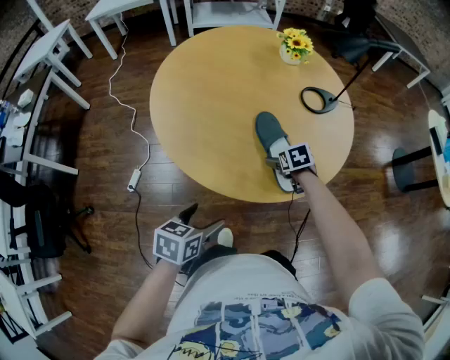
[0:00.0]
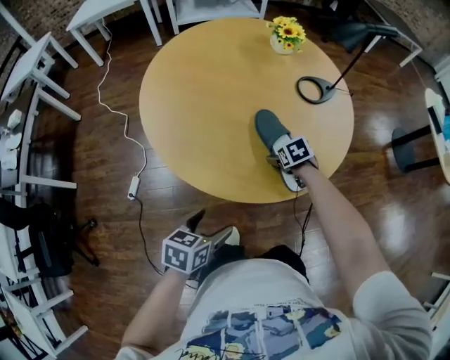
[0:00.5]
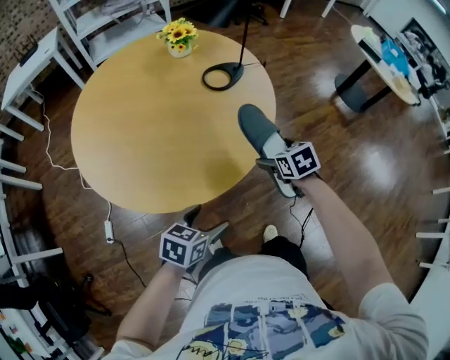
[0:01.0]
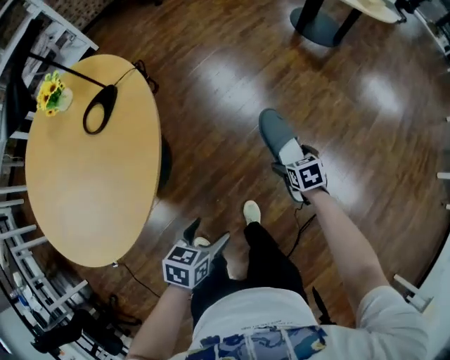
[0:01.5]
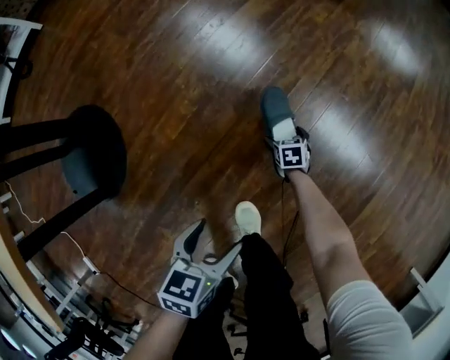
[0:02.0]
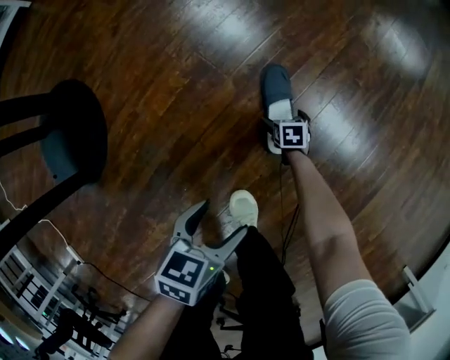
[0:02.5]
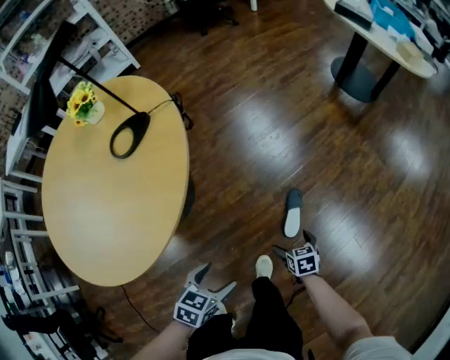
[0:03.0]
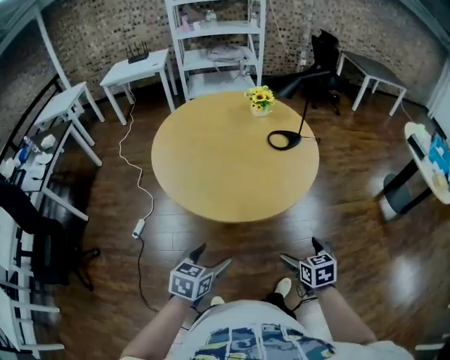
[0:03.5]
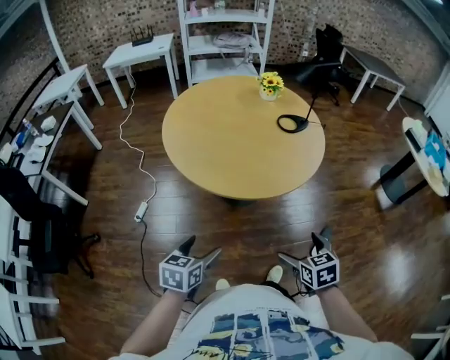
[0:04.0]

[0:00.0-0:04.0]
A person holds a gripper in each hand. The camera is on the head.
0:00.0 to 0:02.0: Both grippers are carried some 80 cm. The left gripper changes its angle by roughly 50 degrees, while the right gripper twists some 50 degrees clockwise, seen from behind.
0:02.0 to 0:04.0: Both grippers are carried some 80 cm. The right gripper shifts some 90 cm upward, and twists approximately 40 degrees counterclockwise, seen from behind. Meanwhile the left gripper swivels some 50 degrees.

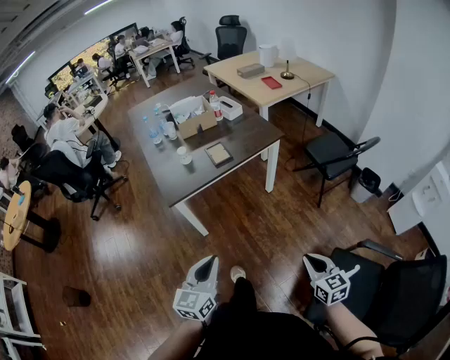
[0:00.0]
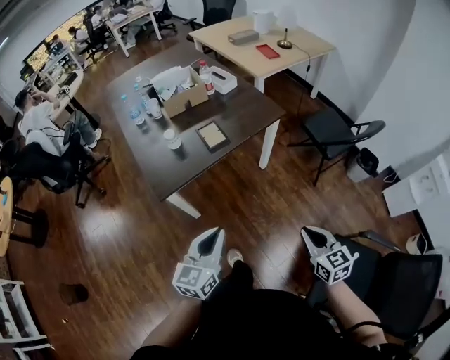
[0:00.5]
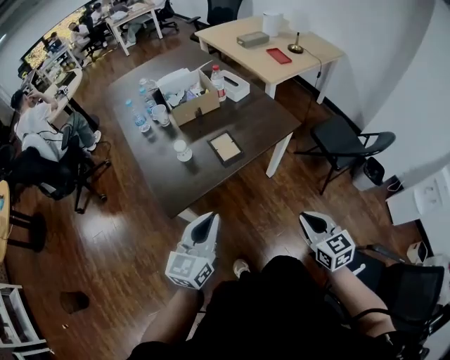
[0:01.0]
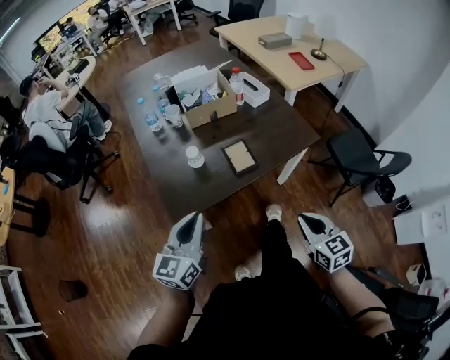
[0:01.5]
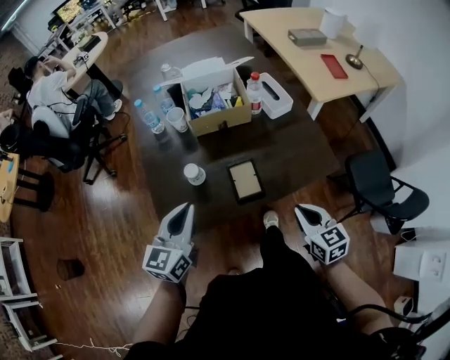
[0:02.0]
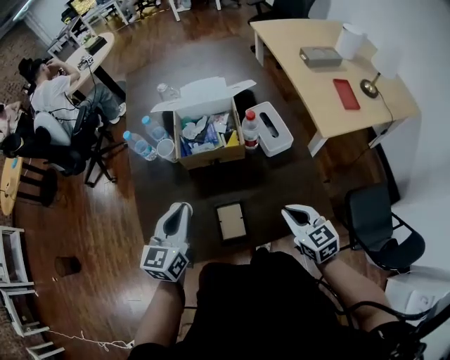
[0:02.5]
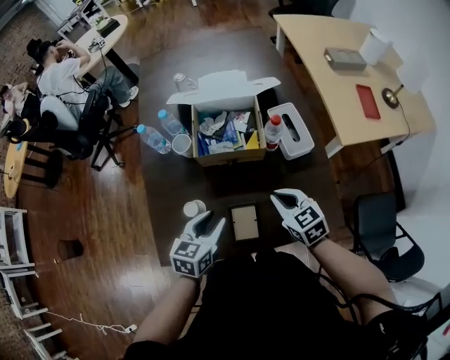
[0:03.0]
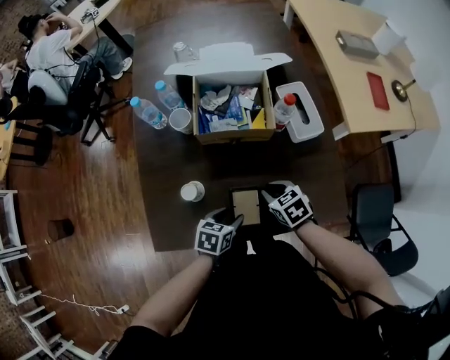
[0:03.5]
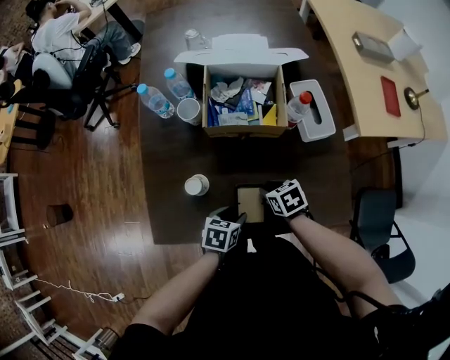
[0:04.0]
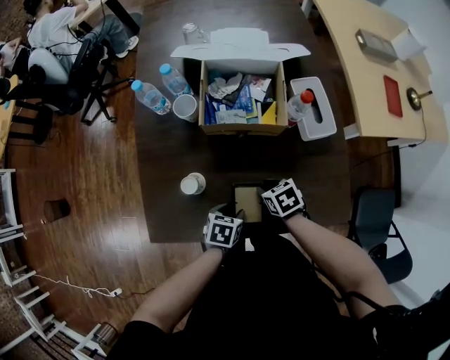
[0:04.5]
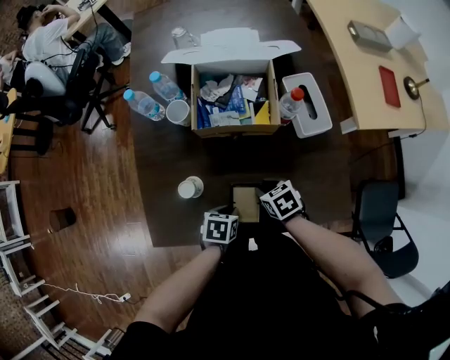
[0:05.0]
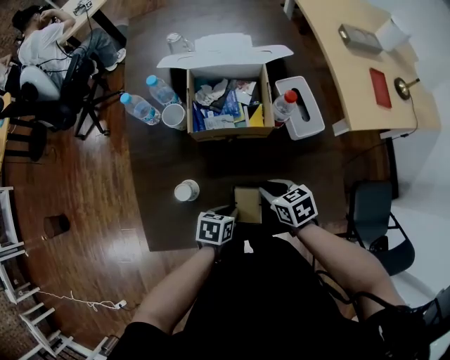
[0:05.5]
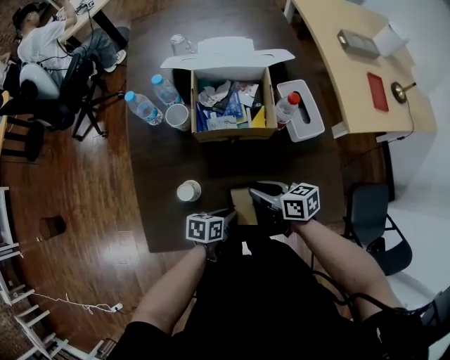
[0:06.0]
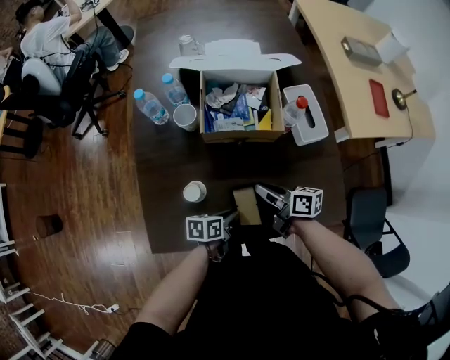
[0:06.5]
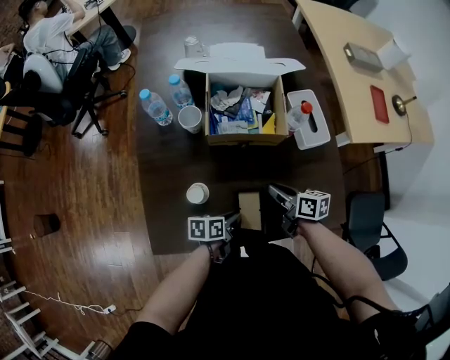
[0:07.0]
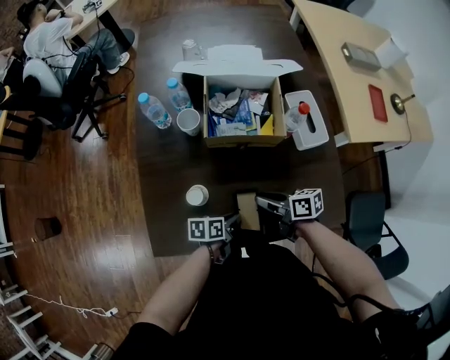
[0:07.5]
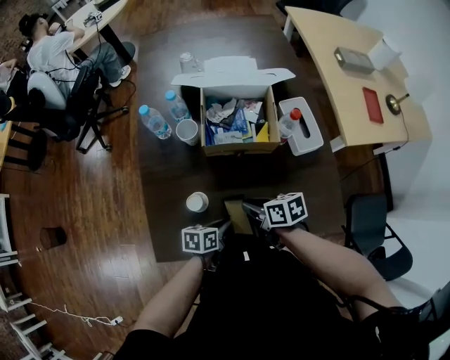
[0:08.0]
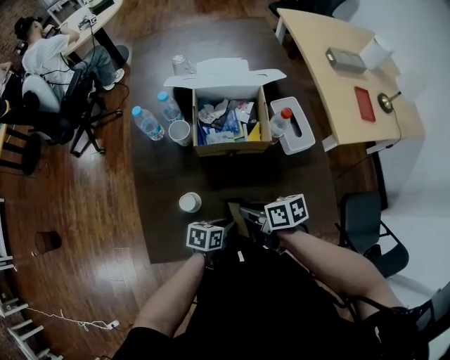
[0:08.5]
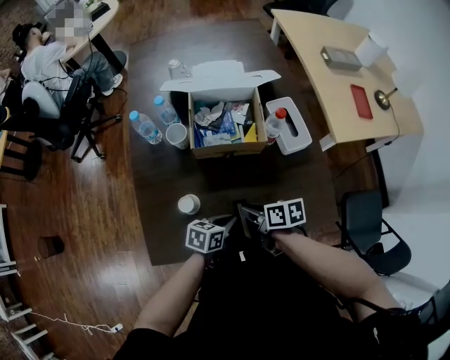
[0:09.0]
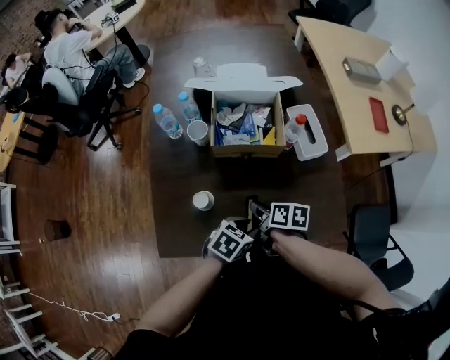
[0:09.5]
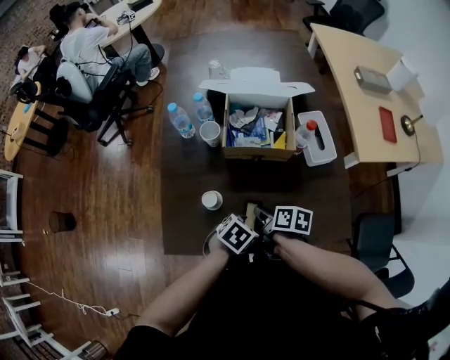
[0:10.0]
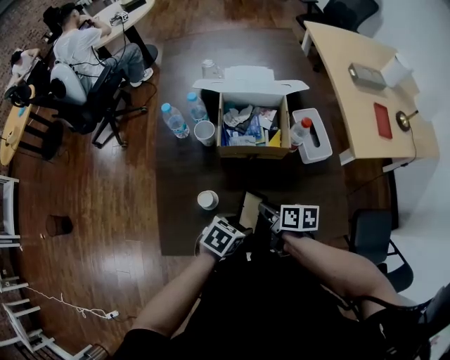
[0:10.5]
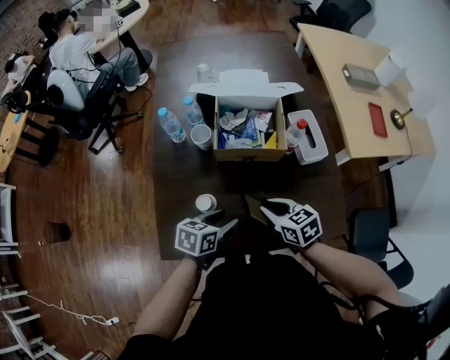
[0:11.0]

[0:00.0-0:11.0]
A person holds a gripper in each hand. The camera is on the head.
0:00.0 to 0:02.0: The two grippers travel together, forward, roughly 50 cm.
0:02.0 to 0:03.5: The left gripper travels downward and to the right by roughly 25 cm, tips its fingers downward by approximately 40 degrees, and opens its fingers; the right gripper shifts some 25 cm forward and downward, and turns by approximately 40 degrees.
0:03.5 to 0:05.5: The left gripper closes its fingers.
0:05.5 to 0:07.5: The left gripper swivels approximately 30 degrees. The right gripper turns by some 30 degrees.
0:07.5 to 0:09.0: The left gripper heads upward, covering roughly 5 cm, and changes its angle by about 30 degrees.
0:09.0 to 0:11.0: The left gripper goes roughly 5 cm upward, and opens. Meanwhile the right gripper moves about 5 cm, and changes its angle by about 40 degrees.

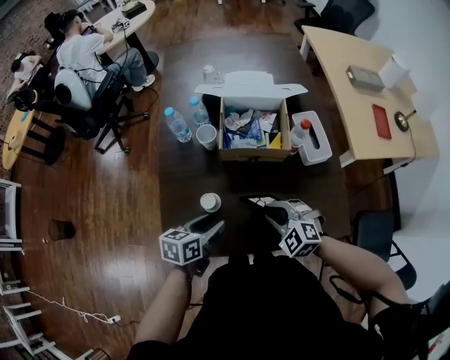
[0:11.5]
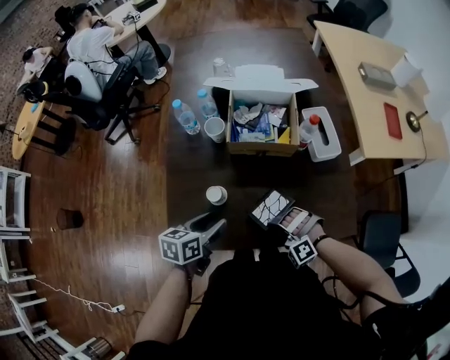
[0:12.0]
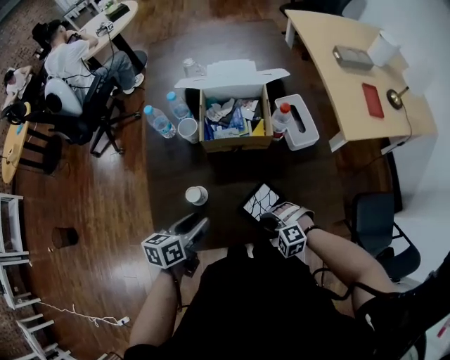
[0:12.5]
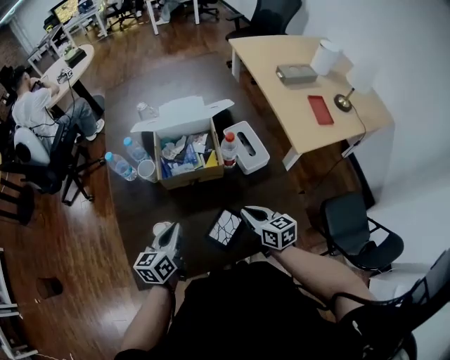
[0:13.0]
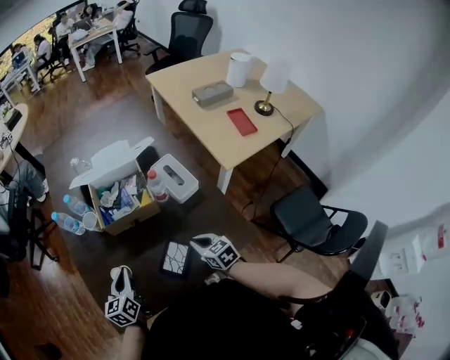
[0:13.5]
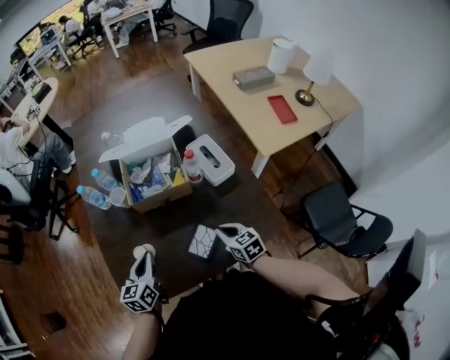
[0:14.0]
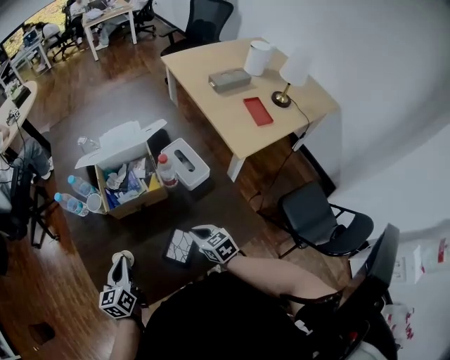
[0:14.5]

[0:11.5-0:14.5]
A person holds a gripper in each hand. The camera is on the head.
0:11.5 to 0:13.0: The right gripper shifts about 10 cm to the right, reaches roughly 15 cm downward, then returns, and twists approximately 70 degrees clockwise, seen from behind; the left gripper shifts some 5 cm forward, and closes.
0:13.0 to 0:14.5: The right gripper shifts by about 5 cm.

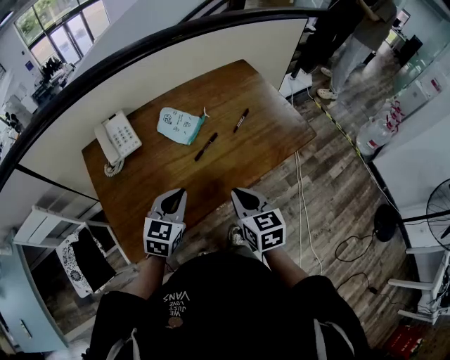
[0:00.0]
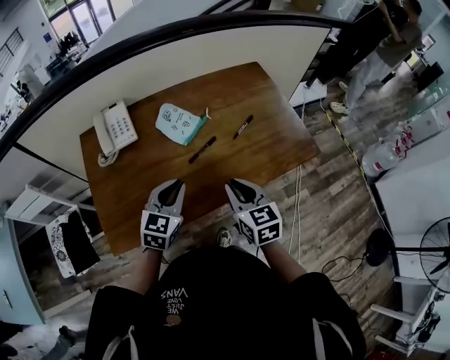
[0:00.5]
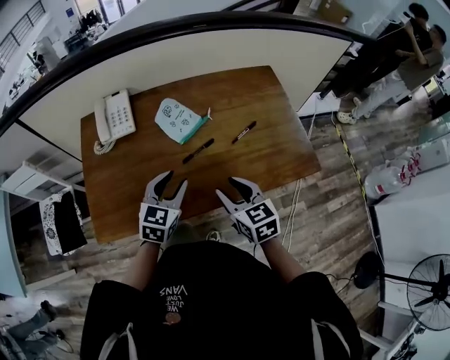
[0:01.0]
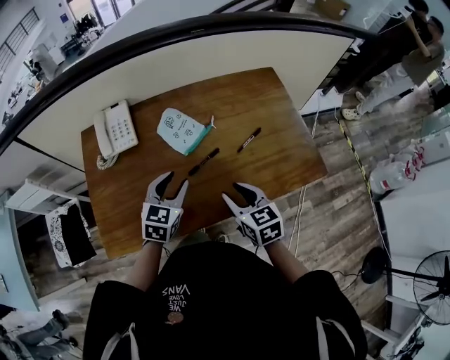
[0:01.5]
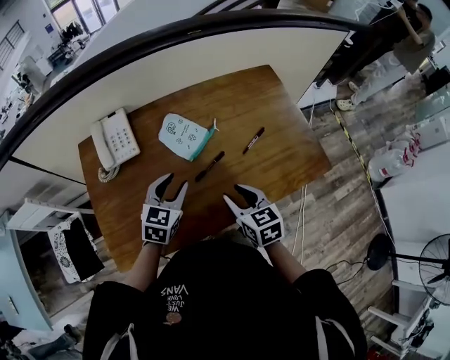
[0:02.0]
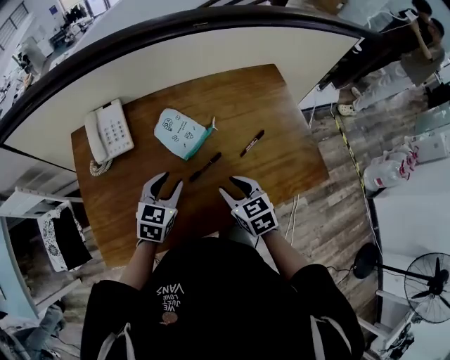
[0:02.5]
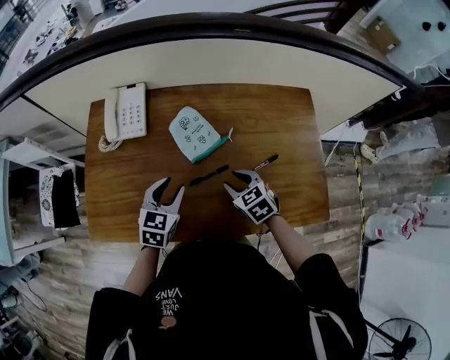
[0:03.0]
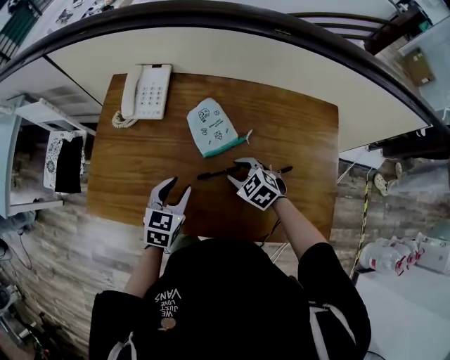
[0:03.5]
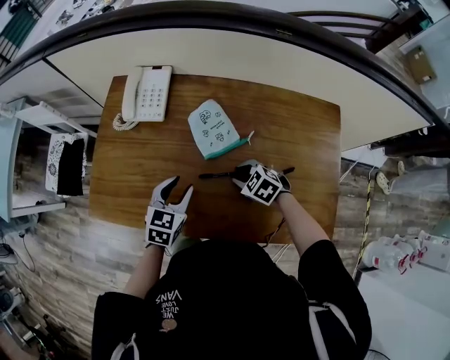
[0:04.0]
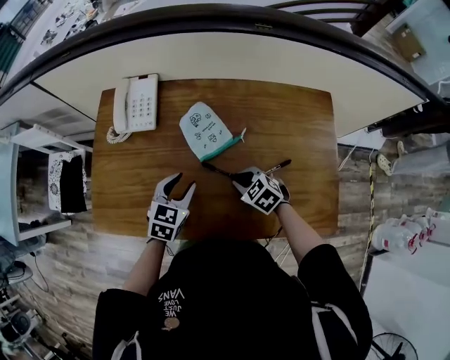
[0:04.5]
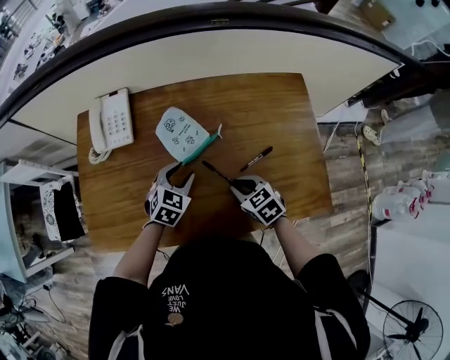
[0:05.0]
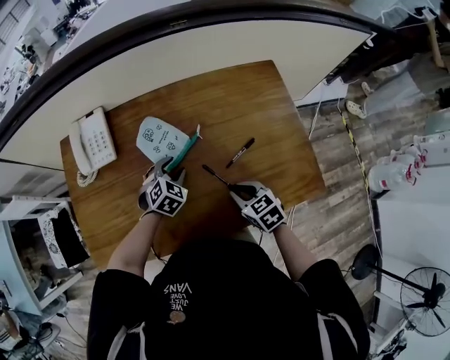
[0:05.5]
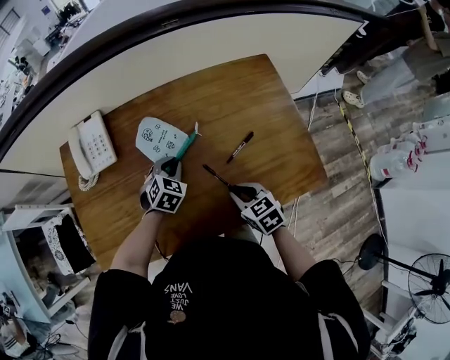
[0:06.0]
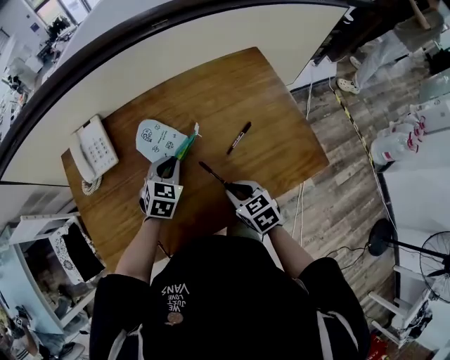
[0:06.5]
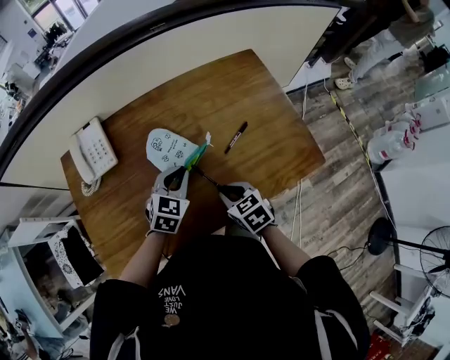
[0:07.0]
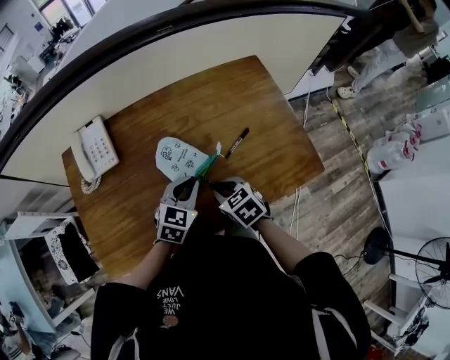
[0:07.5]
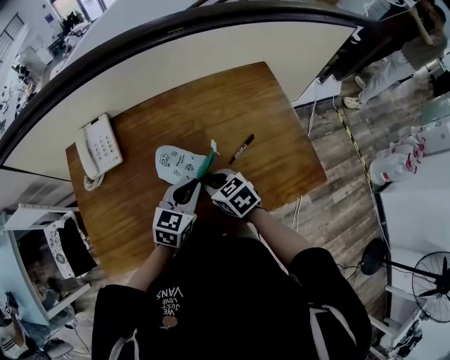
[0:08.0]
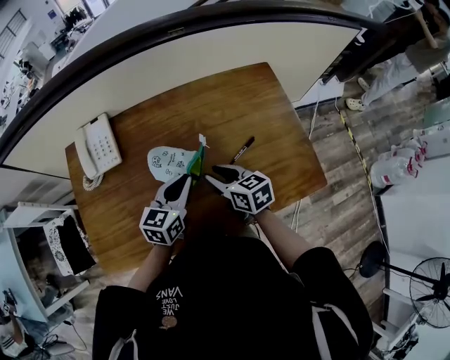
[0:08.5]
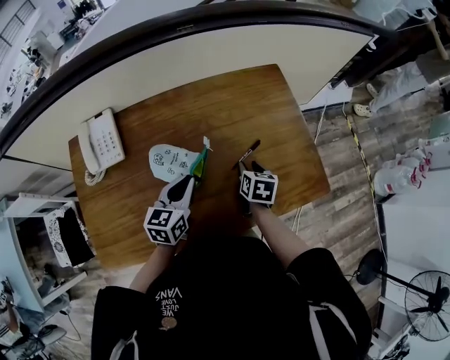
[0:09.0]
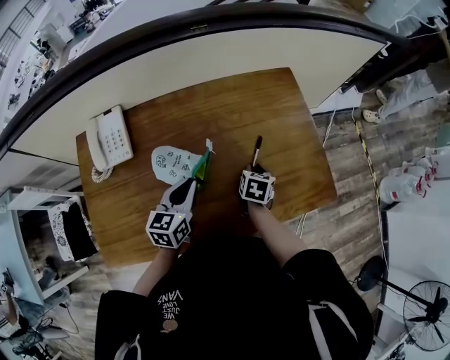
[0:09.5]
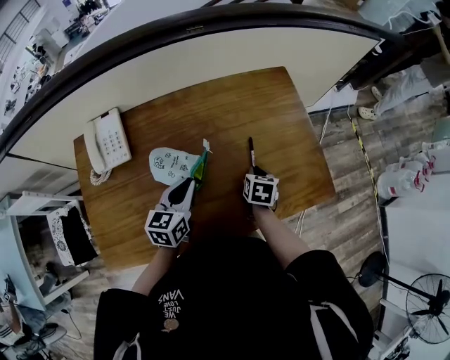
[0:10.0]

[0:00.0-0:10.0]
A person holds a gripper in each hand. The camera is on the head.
0:00.0 to 0:02.0: The right gripper is displaced forward and downward by about 15 cm, and opens its fingers; the left gripper travels forward by approximately 15 cm, and opens its fingers.
0:02.0 to 0:04.0: The right gripper is displaced downward by about 15 cm, and swivels roughly 70 degrees, while the left gripper shifts approximately 5 cm downward, and changes its angle by roughly 30 degrees.
0:04.0 to 0:06.0: The right gripper moves approximately 15 cm, and rolls clockwise, seen from behind, by some 50 degrees. The left gripper changes place by approximately 15 cm, swivels roughly 40 degrees, and closes.
0:06.0 to 0:08.0: The right gripper travels to the left and forward by about 10 cm; the left gripper heads upward and backward, covering some 15 cm, and changes its angle by roughly 30 degrees.
0:08.0 to 0:10.0: The left gripper moves approximately 5 cm. Meanwhile the right gripper travels to the right, downward and forward by some 20 cm, and turns by roughly 50 degrees.
